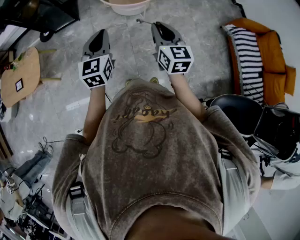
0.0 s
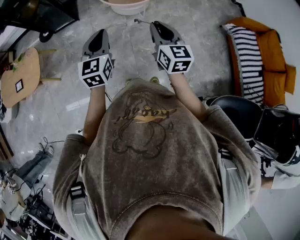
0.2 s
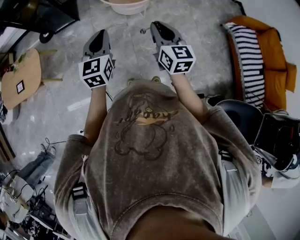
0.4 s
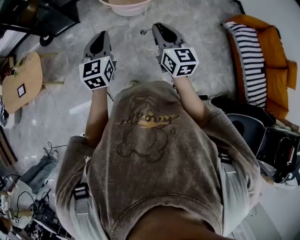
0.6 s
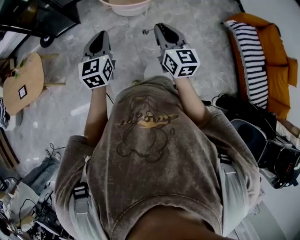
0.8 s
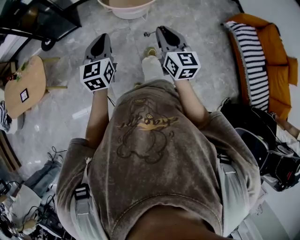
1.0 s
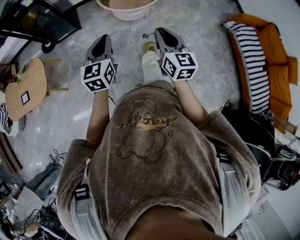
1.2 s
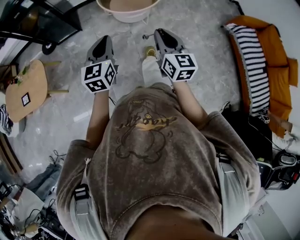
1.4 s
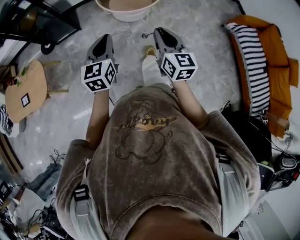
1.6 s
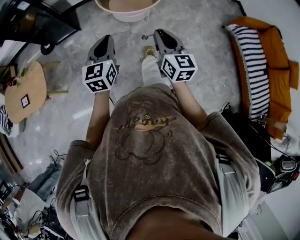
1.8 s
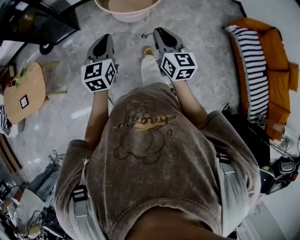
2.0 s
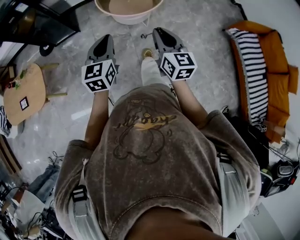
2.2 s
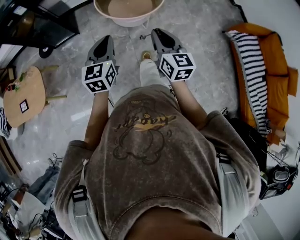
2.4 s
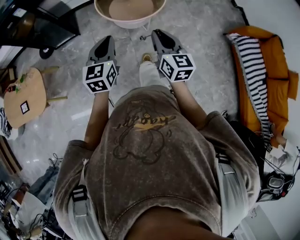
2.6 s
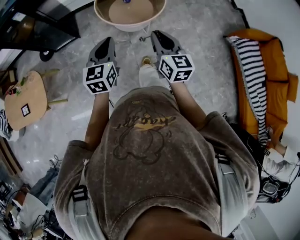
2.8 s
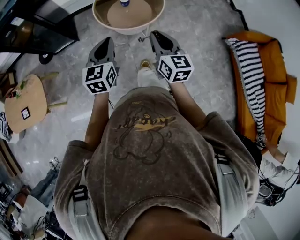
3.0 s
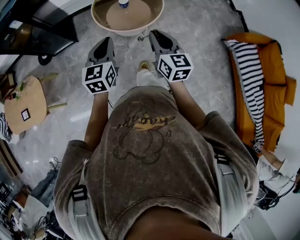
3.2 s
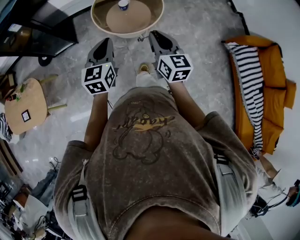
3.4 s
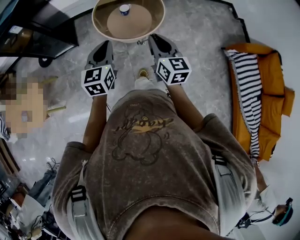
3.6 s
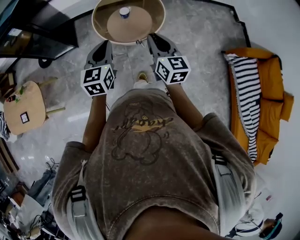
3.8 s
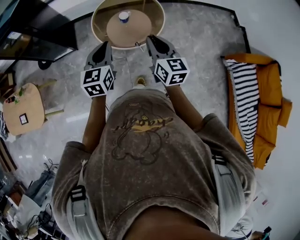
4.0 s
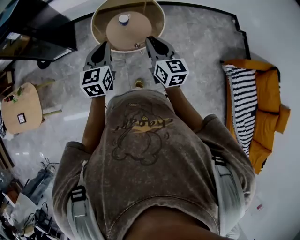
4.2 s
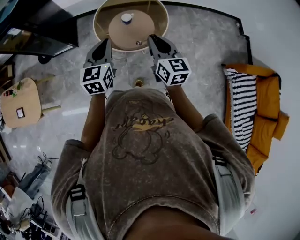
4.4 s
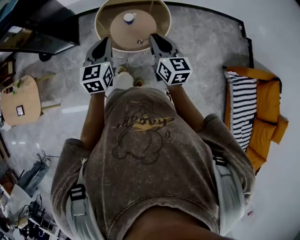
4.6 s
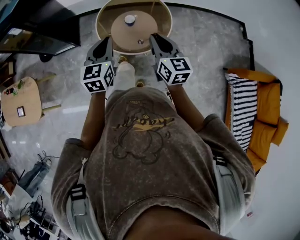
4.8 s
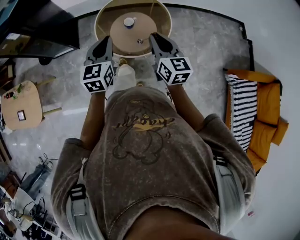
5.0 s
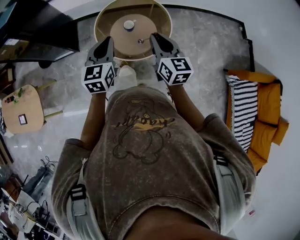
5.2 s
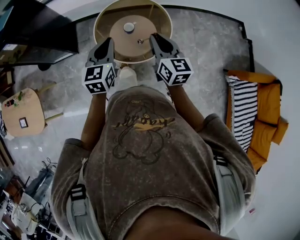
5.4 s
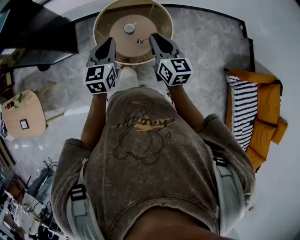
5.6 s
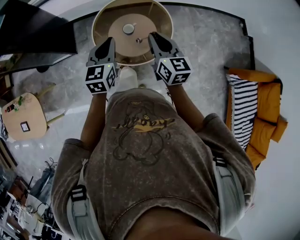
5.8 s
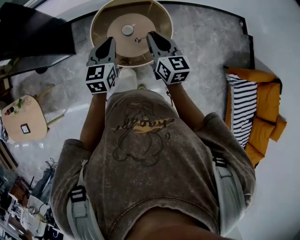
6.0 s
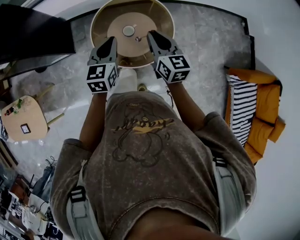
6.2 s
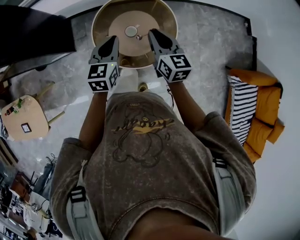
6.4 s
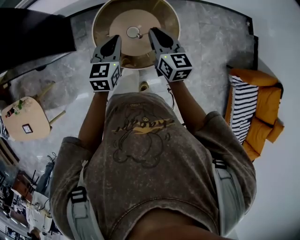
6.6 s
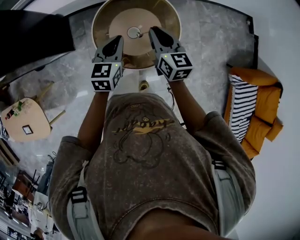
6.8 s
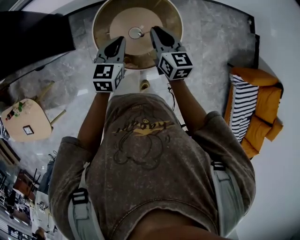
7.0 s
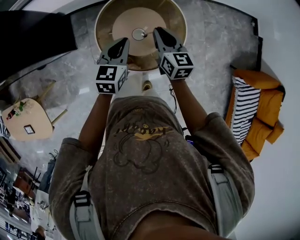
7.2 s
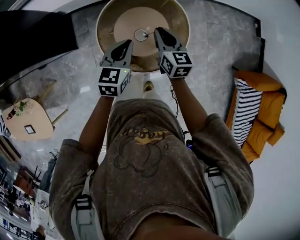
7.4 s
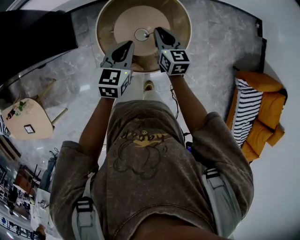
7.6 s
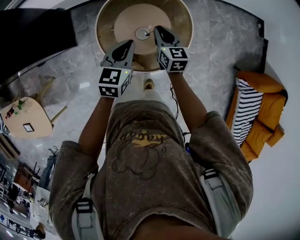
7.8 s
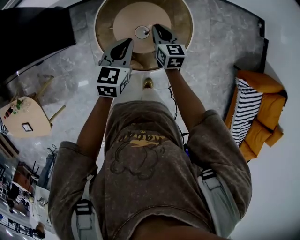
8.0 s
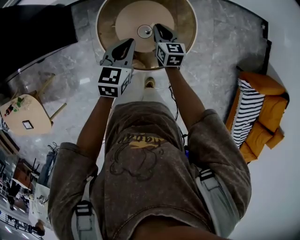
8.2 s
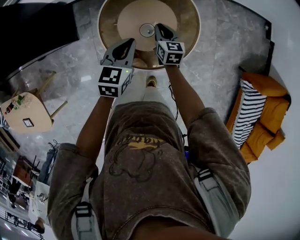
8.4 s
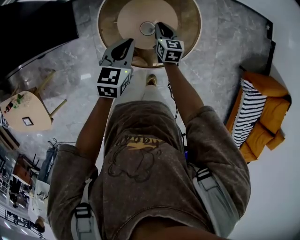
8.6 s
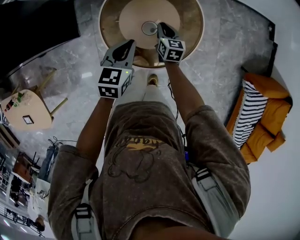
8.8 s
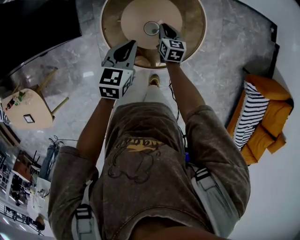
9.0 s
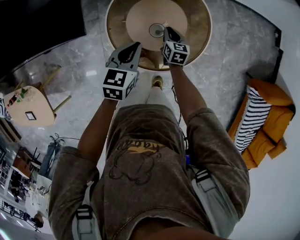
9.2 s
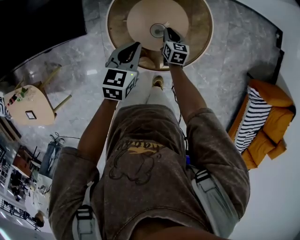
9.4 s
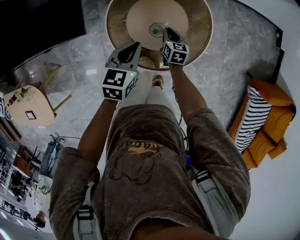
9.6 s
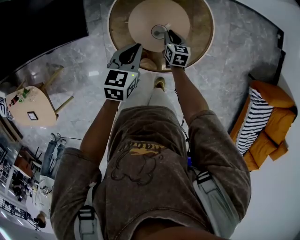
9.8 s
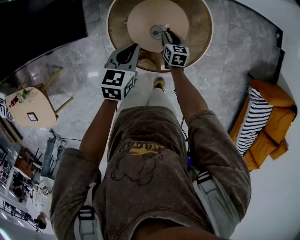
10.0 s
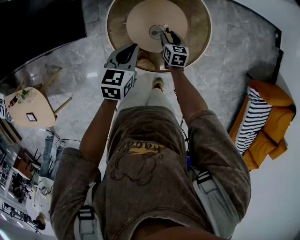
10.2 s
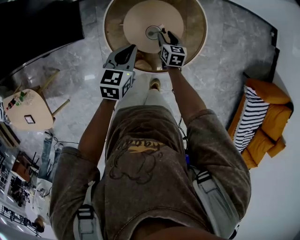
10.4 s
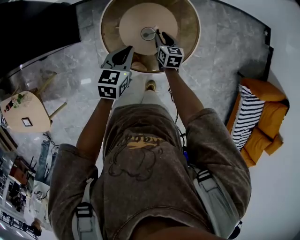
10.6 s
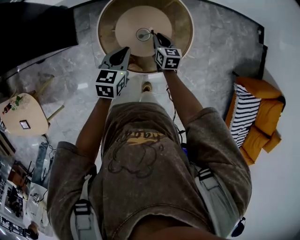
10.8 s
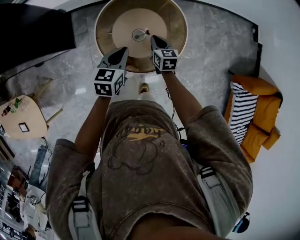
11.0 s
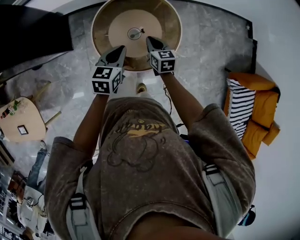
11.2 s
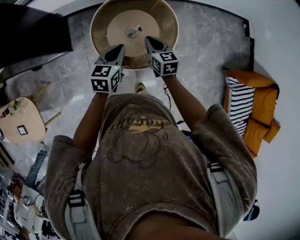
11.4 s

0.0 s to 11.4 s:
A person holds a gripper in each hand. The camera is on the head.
0.0 to 1.4 s: The left gripper shifts by about 5 cm.
1.4 to 2.8 s: Both grippers travel together forward, some 15 cm.
2.8 to 4.2 s: Both grippers travel together forward, about 20 cm.
4.2 to 5.6 s: Both grippers travel together forward, about 15 cm.
5.6 to 7.2 s: Both grippers travel together forward and downward, about 20 cm.
7.2 to 8.6 s: The right gripper goes approximately 20 cm downward. The left gripper travels downward by some 5 cm.
8.6 to 10.0 s: The right gripper is displaced downward by some 5 cm.
10.0 to 11.4 s: The right gripper is displaced upward by some 20 cm, and closes; the left gripper heads upward, covering about 10 cm.

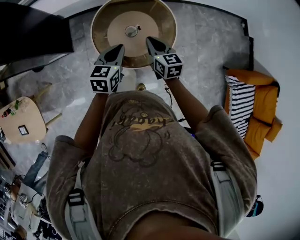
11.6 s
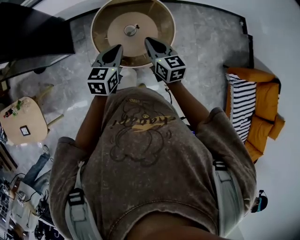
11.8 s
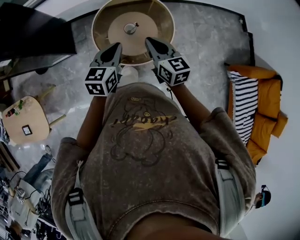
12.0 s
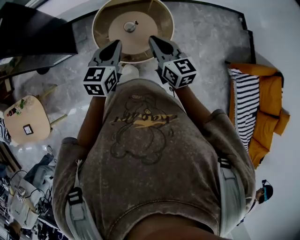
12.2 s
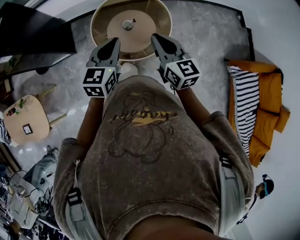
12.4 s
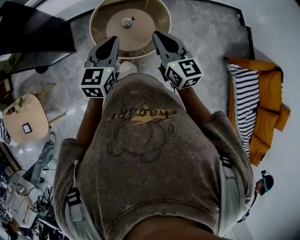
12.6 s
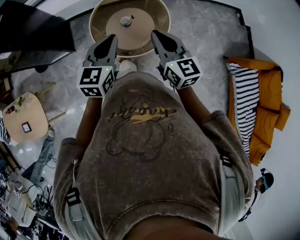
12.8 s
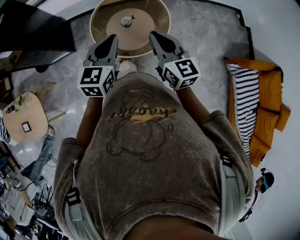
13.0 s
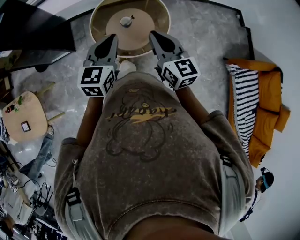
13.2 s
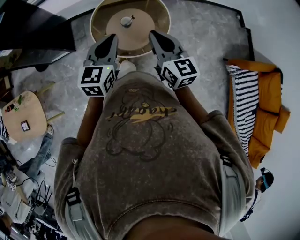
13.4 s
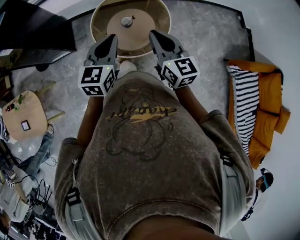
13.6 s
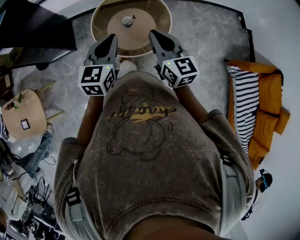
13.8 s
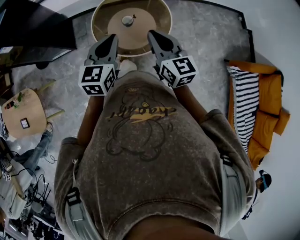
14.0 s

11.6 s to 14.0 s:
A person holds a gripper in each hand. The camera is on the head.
11.6 to 12.8 s: The left gripper moves upward and backward, some 20 cm, while the right gripper heads upward, backward and to the right, covering approximately 25 cm, and rotates some 20 degrees.
12.8 to 14.0 s: There are only small adjustments of the grippers.

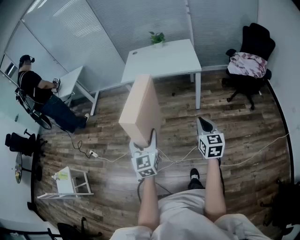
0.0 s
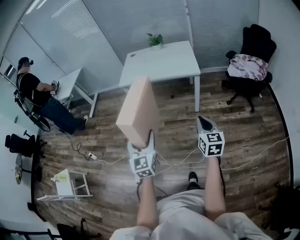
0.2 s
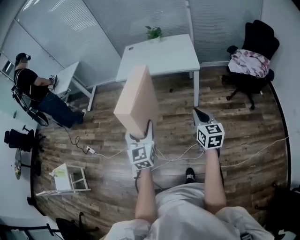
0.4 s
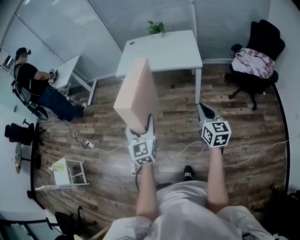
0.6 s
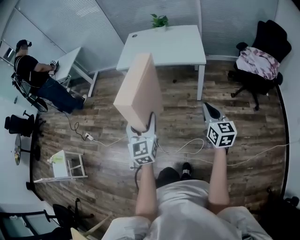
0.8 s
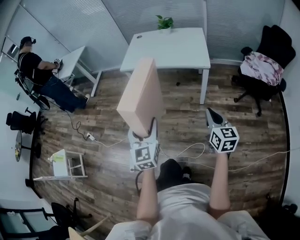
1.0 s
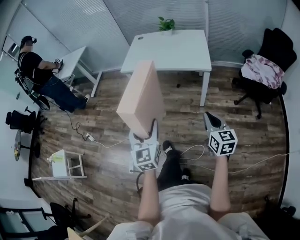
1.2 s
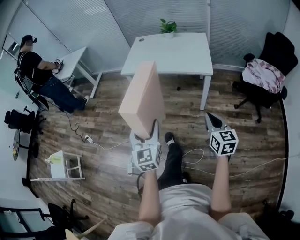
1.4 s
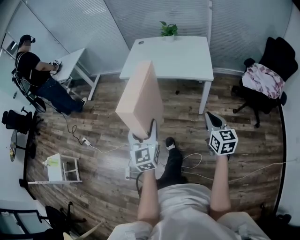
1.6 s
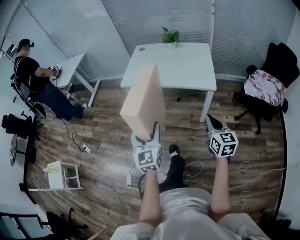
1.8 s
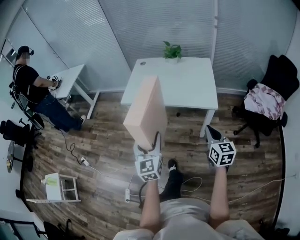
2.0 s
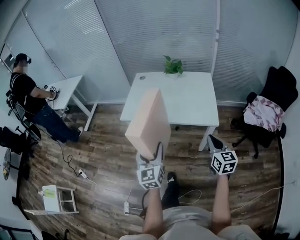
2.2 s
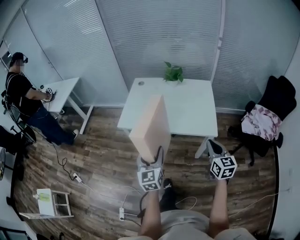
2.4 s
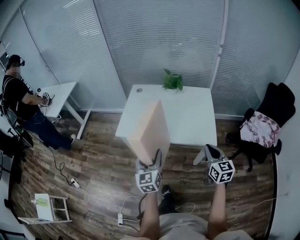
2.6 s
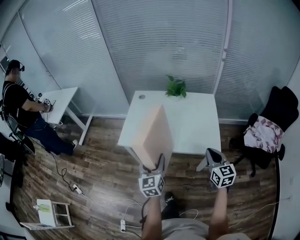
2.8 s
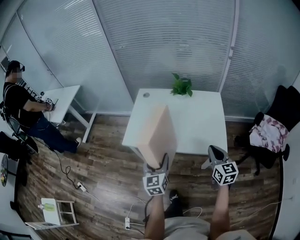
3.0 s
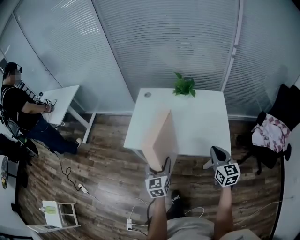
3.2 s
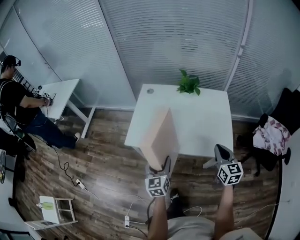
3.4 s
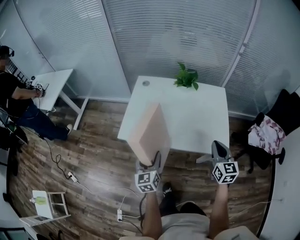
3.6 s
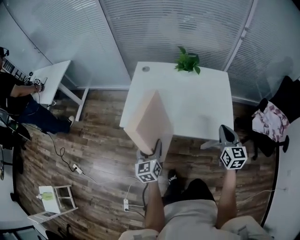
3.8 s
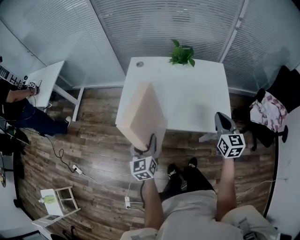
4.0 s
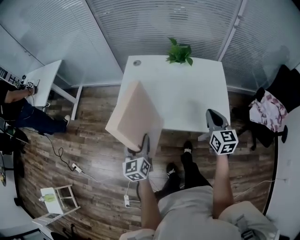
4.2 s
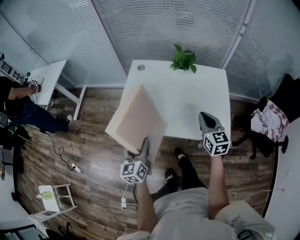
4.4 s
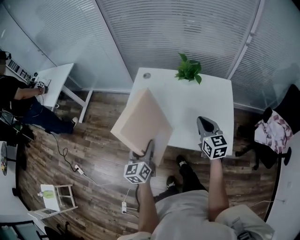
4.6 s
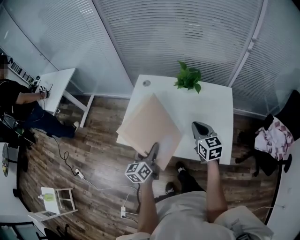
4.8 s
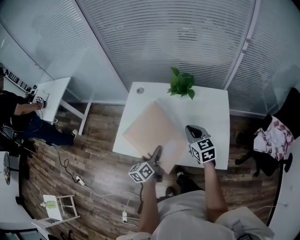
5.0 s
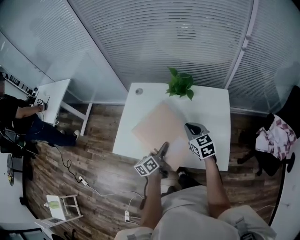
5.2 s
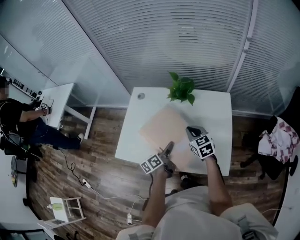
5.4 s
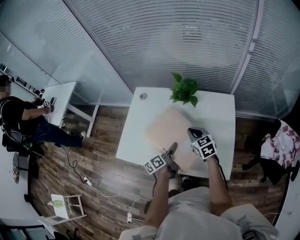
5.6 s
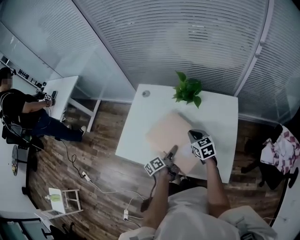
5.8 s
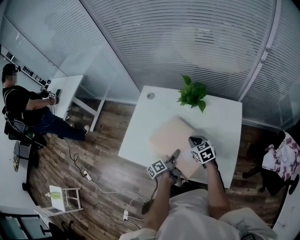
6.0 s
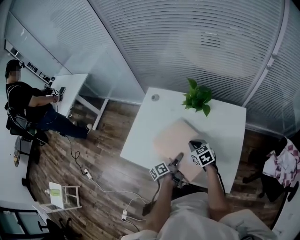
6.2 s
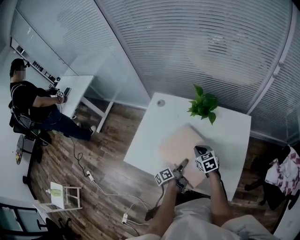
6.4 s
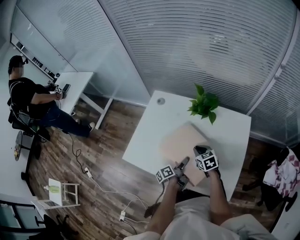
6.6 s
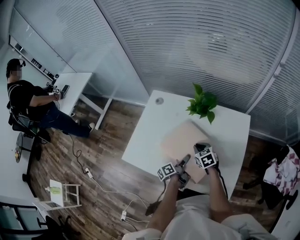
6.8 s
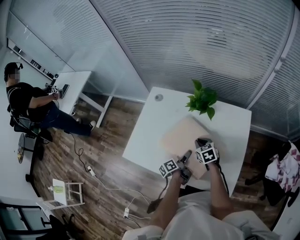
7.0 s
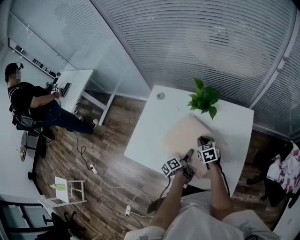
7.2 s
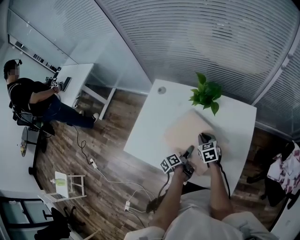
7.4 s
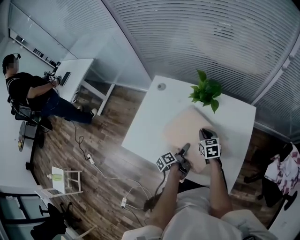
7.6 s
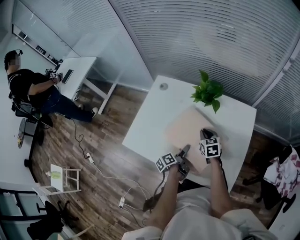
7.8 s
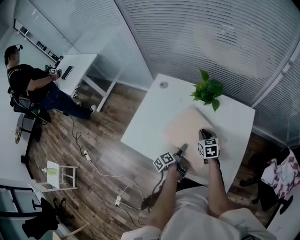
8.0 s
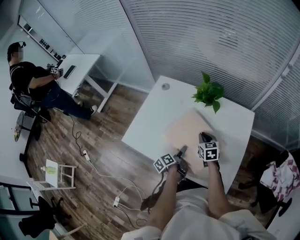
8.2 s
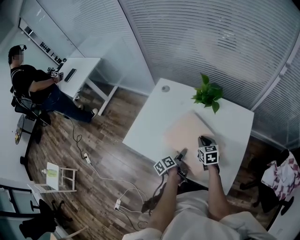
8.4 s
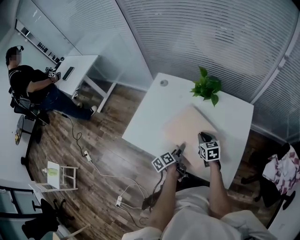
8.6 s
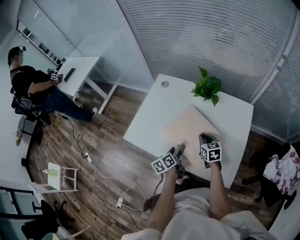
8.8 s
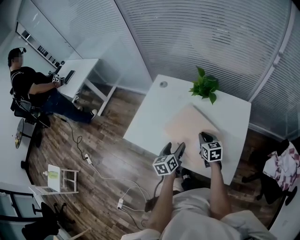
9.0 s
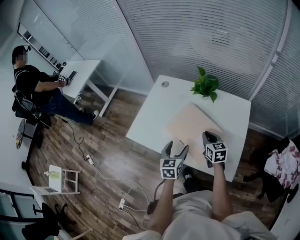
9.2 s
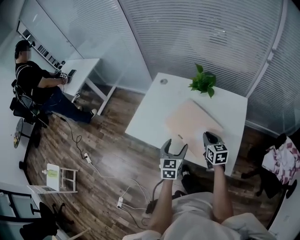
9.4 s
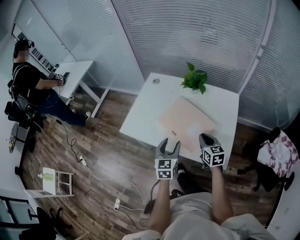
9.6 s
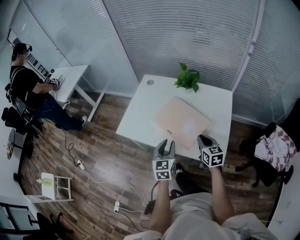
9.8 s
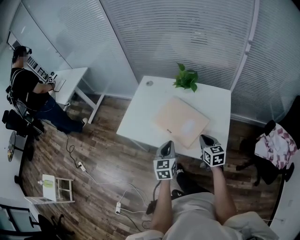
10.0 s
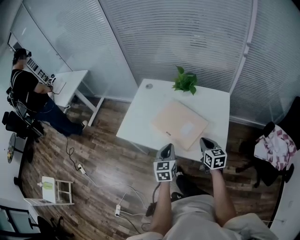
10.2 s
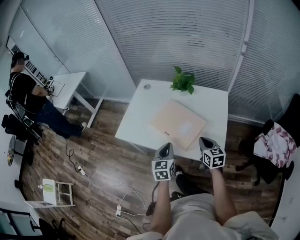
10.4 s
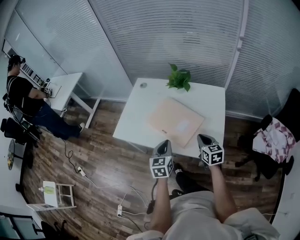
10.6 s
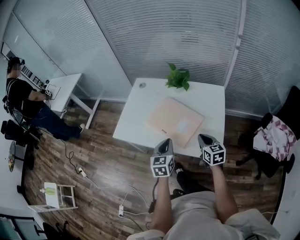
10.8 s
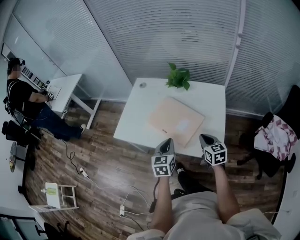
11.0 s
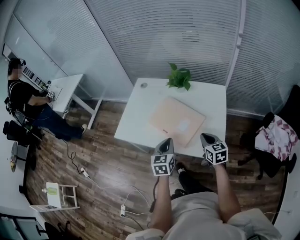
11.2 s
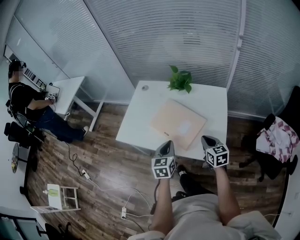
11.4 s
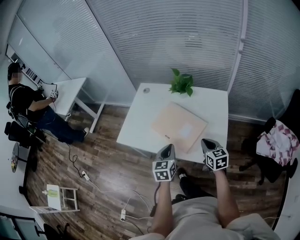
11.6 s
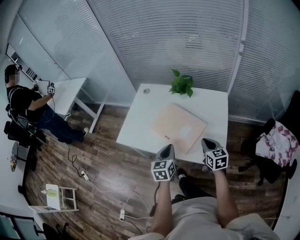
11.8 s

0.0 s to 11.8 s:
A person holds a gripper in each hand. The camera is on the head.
0.0 to 1.4 s: Both grippers travel together forward and to the right, roughly 15 cm.
1.4 to 3.0 s: The pair of grippers is taken forward, approximately 40 cm.
3.0 to 4.4 s: The right gripper travels forward by some 15 cm. The left gripper is displaced to the left and forward by about 10 cm.
4.4 to 6.0 s: The left gripper heads to the right, downward and forward, covering approximately 30 cm, and twists approximately 60 degrees counterclockwise, seen from behind. The right gripper moves forward and downward, about 25 cm, and swivels about 30 degrees.
6.0 to 7.4 s: The left gripper changes place by some 5 cm; the right gripper changes place by roughly 5 cm.
7.4 to 8.8 s: The left gripper goes approximately 10 cm to the left and backward, and swivels about 20 degrees. The right gripper heads backward, covering about 5 cm.
8.8 to 10.4 s: The right gripper travels backward and upward by some 20 cm. The left gripper shifts some 20 cm upward and backward, rolls clockwise, seen from behind, by roughly 50 degrees, and closes.
10.4 to 11.8 s: The grippers make only small movements.
